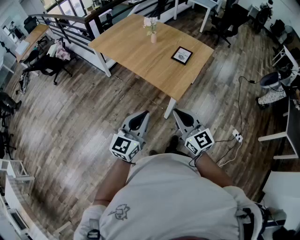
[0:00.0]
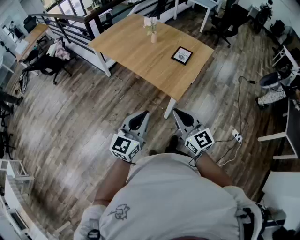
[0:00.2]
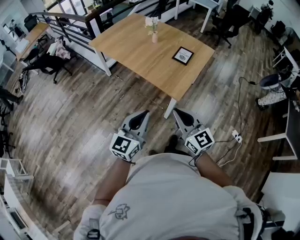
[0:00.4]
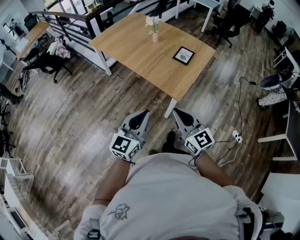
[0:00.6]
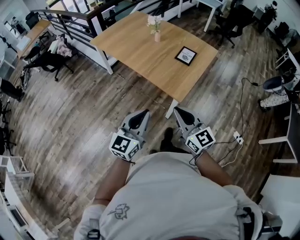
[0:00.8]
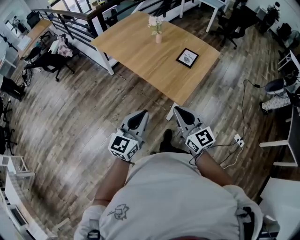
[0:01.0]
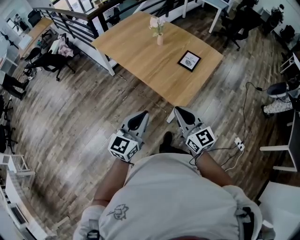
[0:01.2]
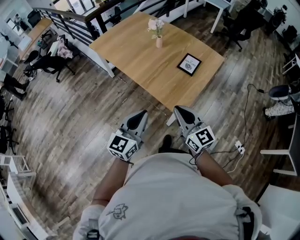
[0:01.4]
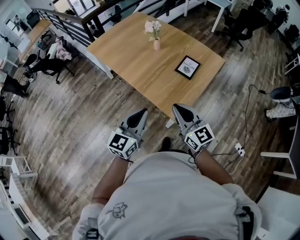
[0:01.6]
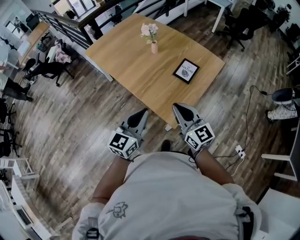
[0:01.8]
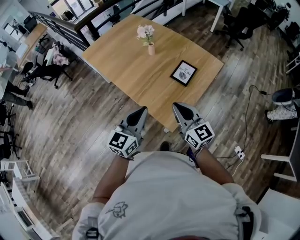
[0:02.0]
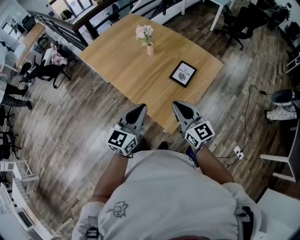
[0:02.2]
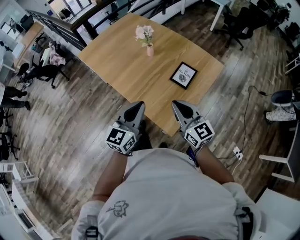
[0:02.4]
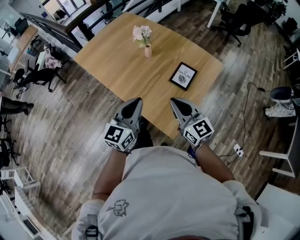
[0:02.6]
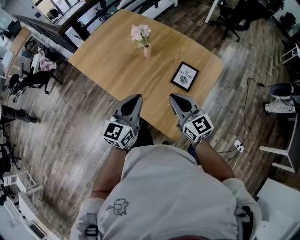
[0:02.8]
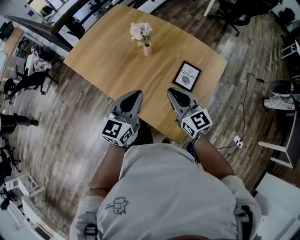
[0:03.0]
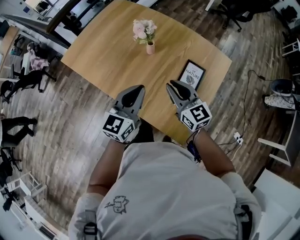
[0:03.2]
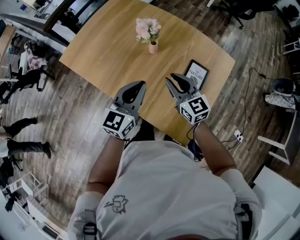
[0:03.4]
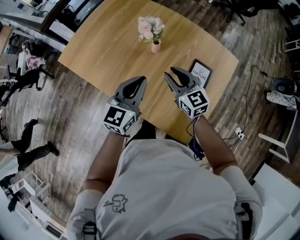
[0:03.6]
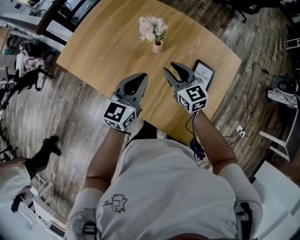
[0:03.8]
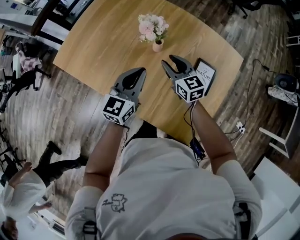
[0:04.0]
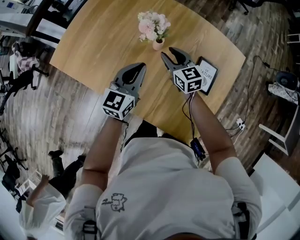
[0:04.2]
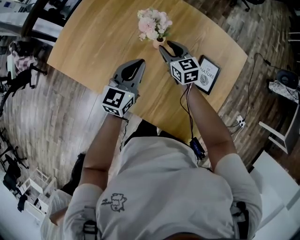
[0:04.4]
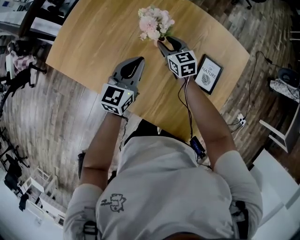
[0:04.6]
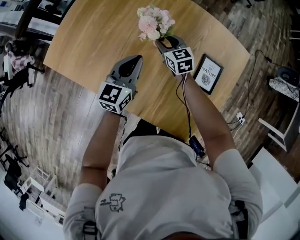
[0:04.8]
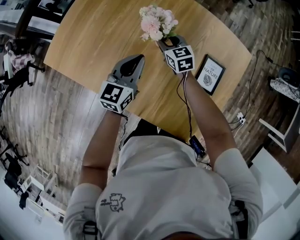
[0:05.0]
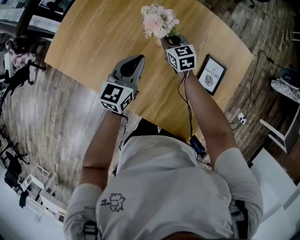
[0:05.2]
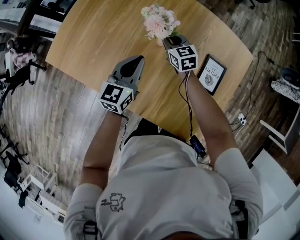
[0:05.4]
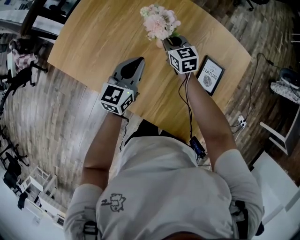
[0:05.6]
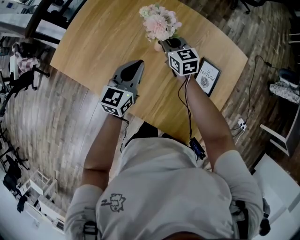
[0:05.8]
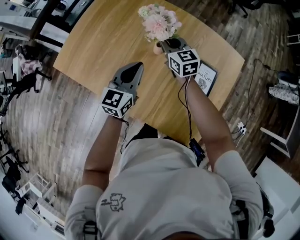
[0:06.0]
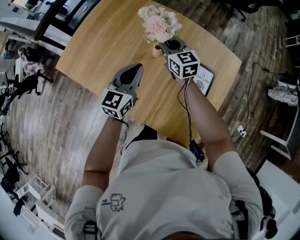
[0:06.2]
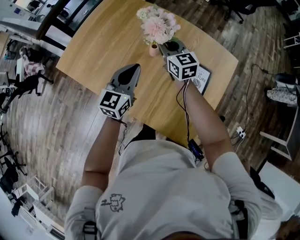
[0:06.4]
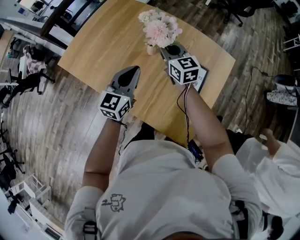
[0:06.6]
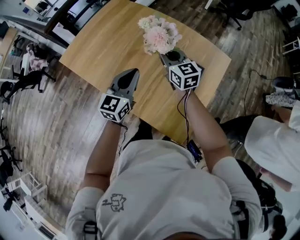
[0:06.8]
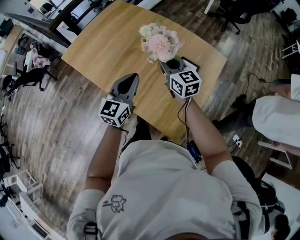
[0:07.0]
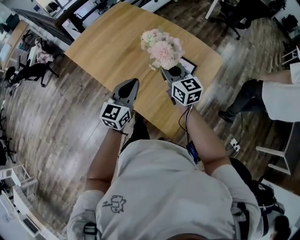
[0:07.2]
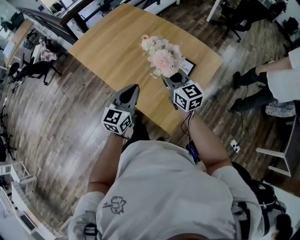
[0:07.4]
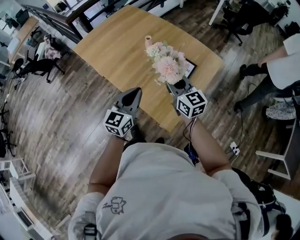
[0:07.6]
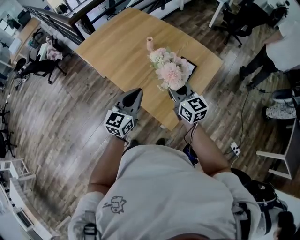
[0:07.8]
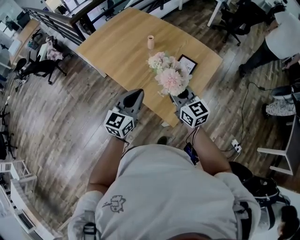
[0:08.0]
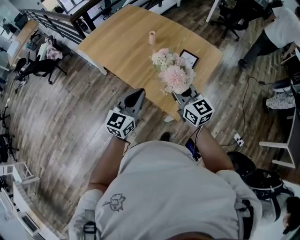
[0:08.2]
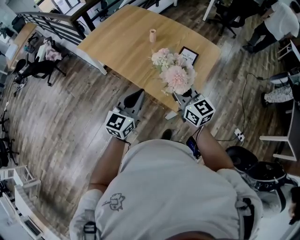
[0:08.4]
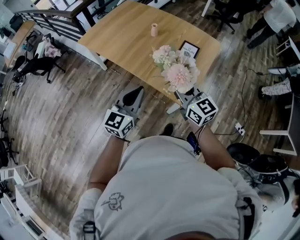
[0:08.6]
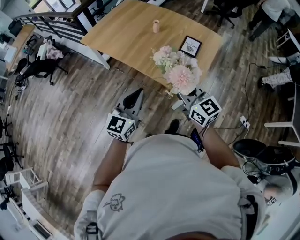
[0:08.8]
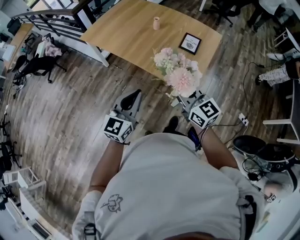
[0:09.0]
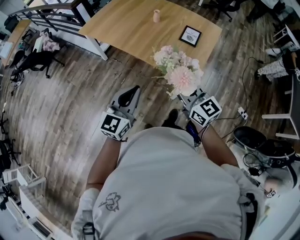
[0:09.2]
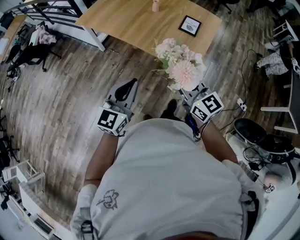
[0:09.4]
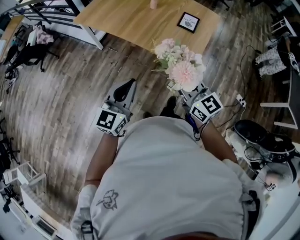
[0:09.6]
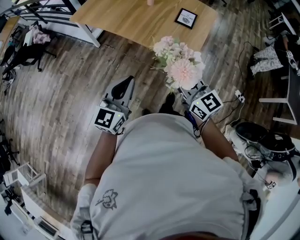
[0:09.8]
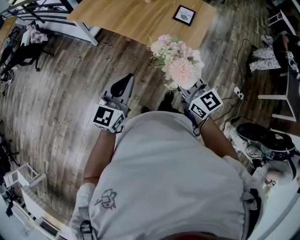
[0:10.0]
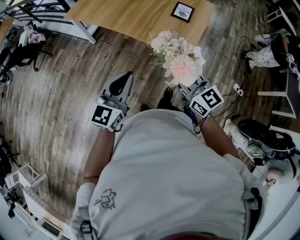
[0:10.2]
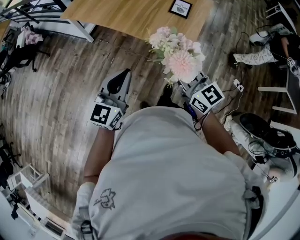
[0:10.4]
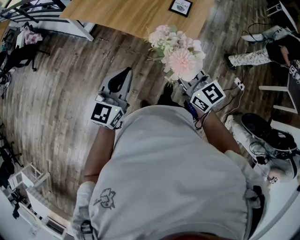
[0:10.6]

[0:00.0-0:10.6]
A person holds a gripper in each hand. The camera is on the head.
0:00.0 to 0:01.6: The two grippers go about 20 cm forward.
0:01.6 to 0:03.0: Both grippers move forward, about 25 cm.
0:03.0 to 0:04.6: Both grippers travel together forward and downward, some 35 cm. The right gripper swivels roughly 20 degrees, and opens.
0:04.6 to 0:06.0: The right gripper heads upward, covering roughly 10 cm, and closes.
0:06.0 to 0:07.6: The two grippers go about 35 cm backward.
0:07.6 to 0:09.0: The two grippers go some 25 cm backward and to the left.
0:09.0 to 0:10.6: The grippers both shift backward by roughly 5 cm.

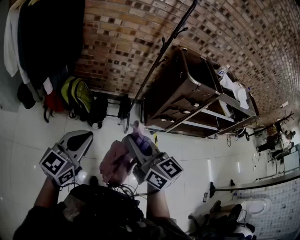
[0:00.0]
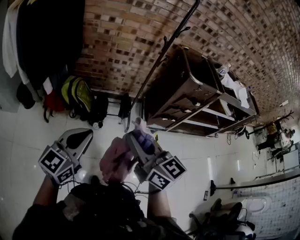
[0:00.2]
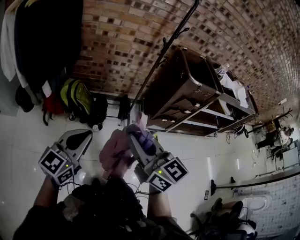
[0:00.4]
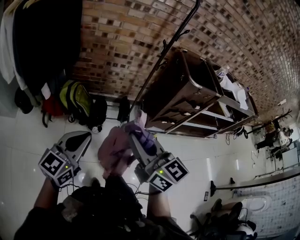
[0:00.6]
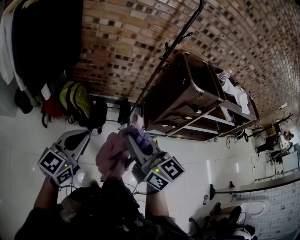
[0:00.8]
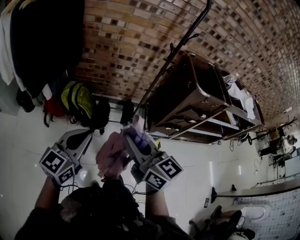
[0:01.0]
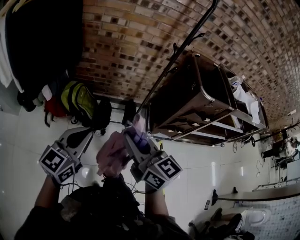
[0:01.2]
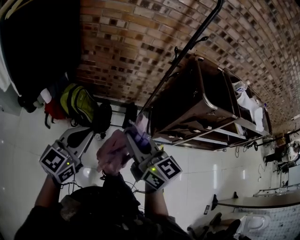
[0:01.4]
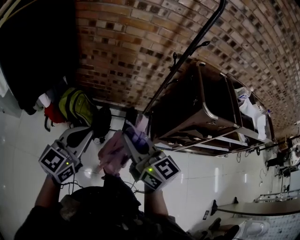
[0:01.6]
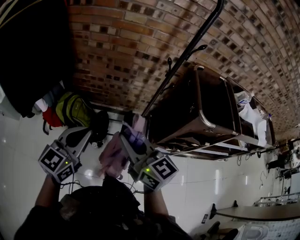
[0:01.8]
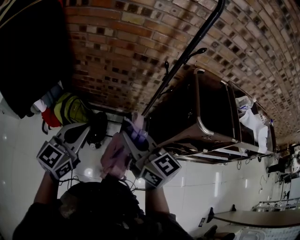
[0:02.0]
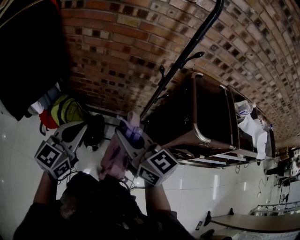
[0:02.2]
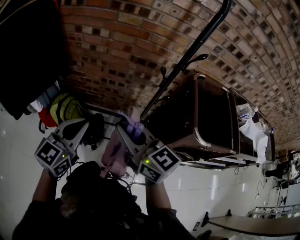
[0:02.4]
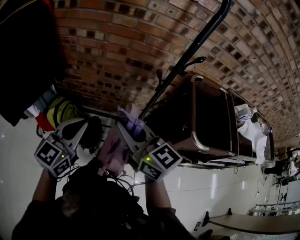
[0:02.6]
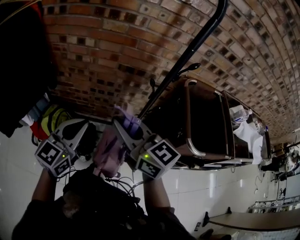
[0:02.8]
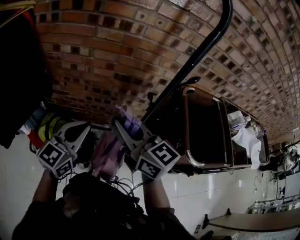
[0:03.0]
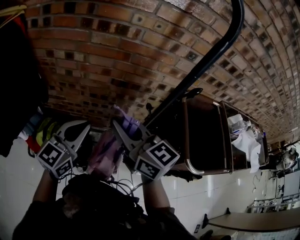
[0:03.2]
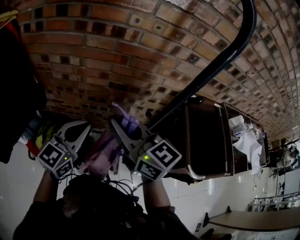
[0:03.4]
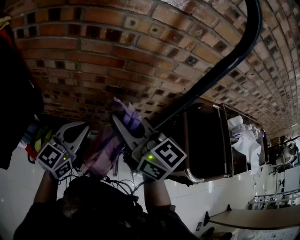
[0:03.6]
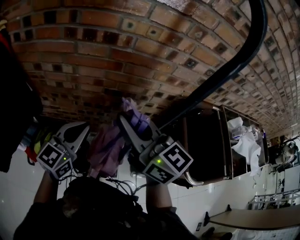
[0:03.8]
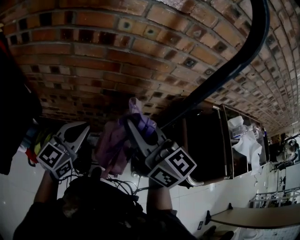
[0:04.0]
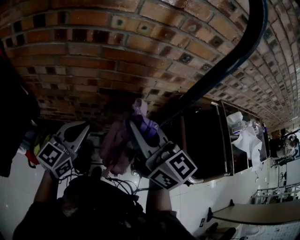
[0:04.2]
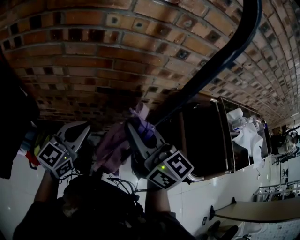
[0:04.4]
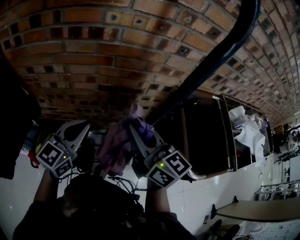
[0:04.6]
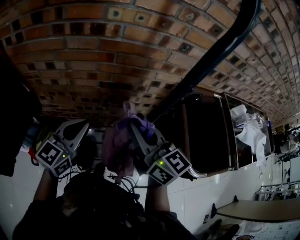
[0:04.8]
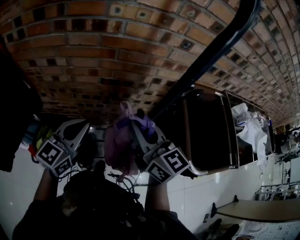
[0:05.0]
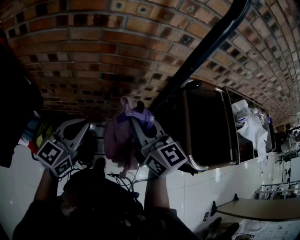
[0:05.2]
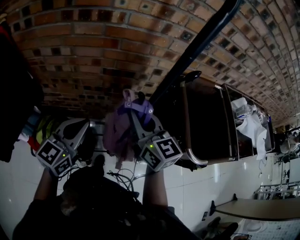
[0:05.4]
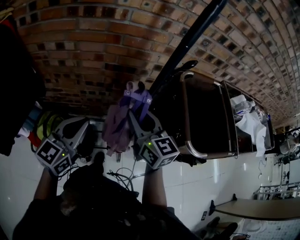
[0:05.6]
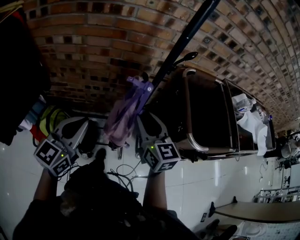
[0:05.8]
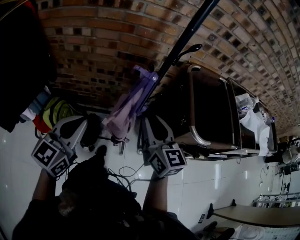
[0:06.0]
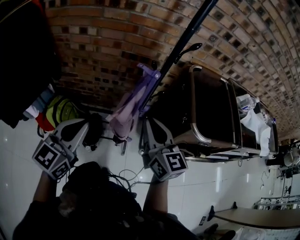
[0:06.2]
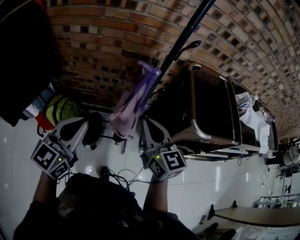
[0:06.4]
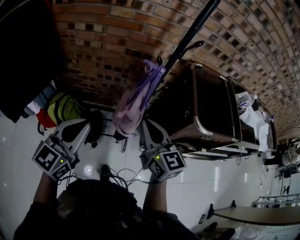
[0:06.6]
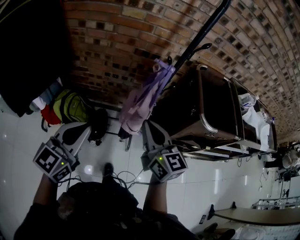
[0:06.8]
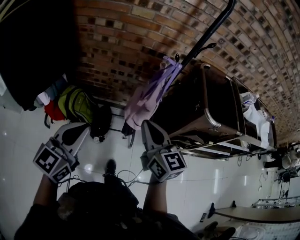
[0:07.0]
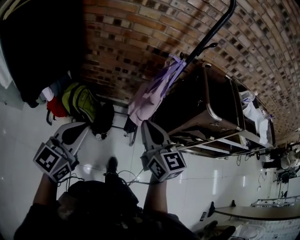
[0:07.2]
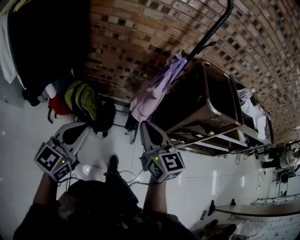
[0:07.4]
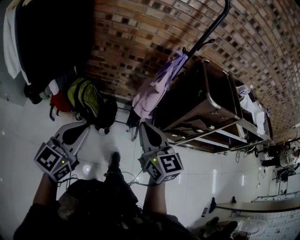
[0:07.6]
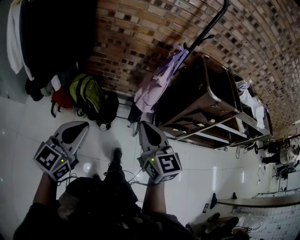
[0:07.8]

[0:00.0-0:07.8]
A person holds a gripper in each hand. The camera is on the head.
0:00.0 to 0:01.6: Both grippers travel together forward, about 30 cm.
0:01.6 to 0:03.2: The left gripper shifts roughly 35 cm forward and to the right. The right gripper is displaced forward by roughly 35 cm.
0:03.2 to 0:04.6: The right gripper shifts some 10 cm to the right and forward. Meanwhile the left gripper is displaced forward by about 10 cm.
0:04.6 to 0:06.2: Both grippers move backward, some 25 cm. The right gripper opens, then closes once more.
0:06.2 to 0:07.8: Both grippers are carried backward and to the left, approximately 40 cm.

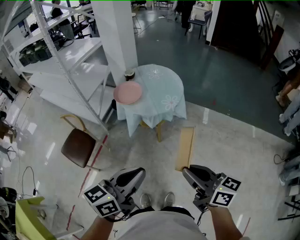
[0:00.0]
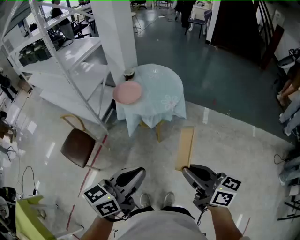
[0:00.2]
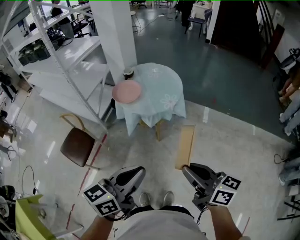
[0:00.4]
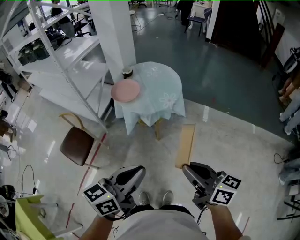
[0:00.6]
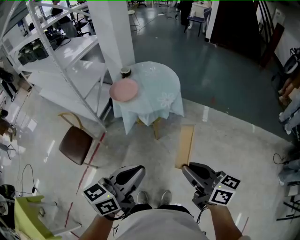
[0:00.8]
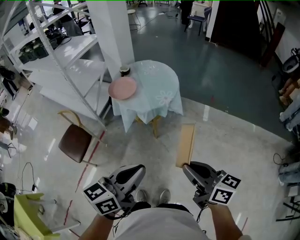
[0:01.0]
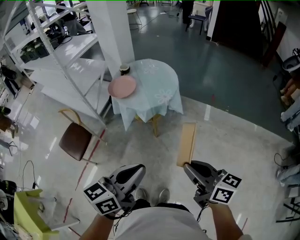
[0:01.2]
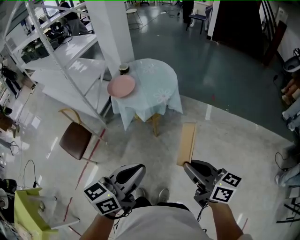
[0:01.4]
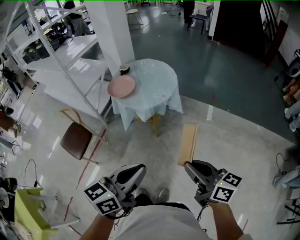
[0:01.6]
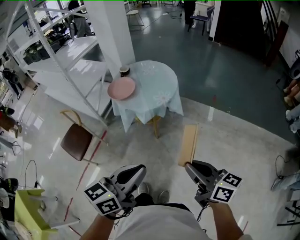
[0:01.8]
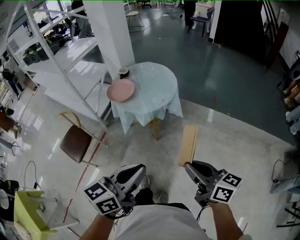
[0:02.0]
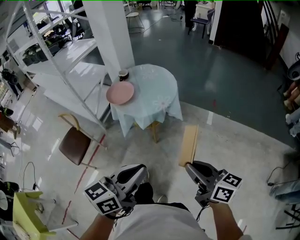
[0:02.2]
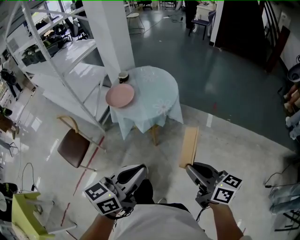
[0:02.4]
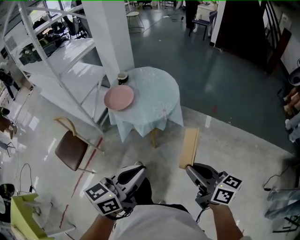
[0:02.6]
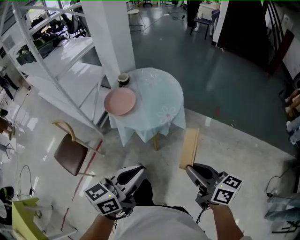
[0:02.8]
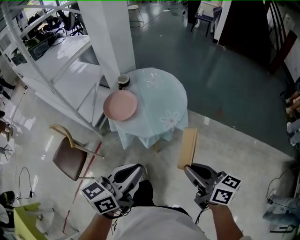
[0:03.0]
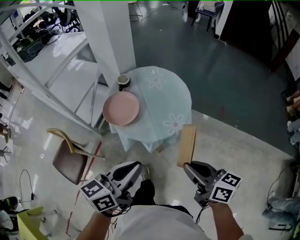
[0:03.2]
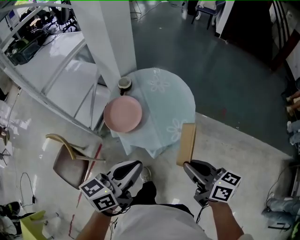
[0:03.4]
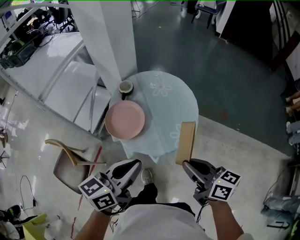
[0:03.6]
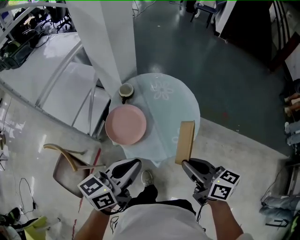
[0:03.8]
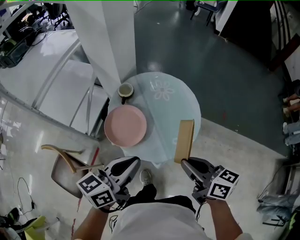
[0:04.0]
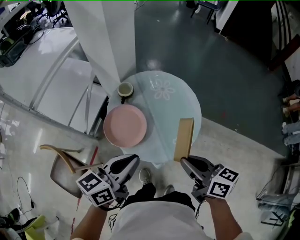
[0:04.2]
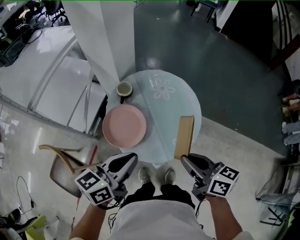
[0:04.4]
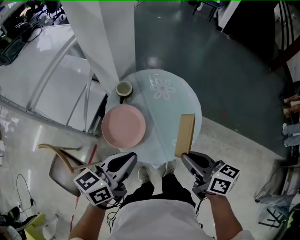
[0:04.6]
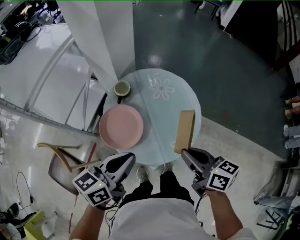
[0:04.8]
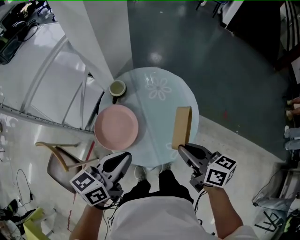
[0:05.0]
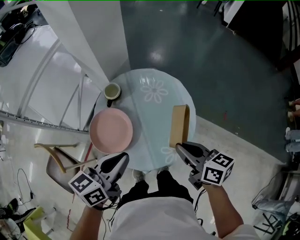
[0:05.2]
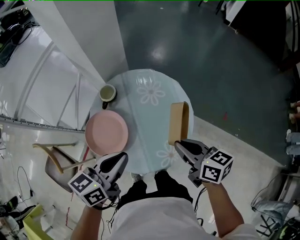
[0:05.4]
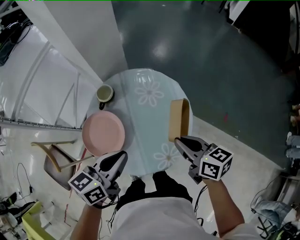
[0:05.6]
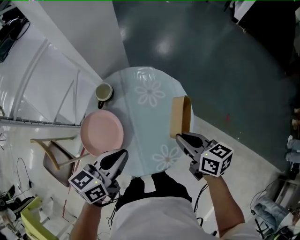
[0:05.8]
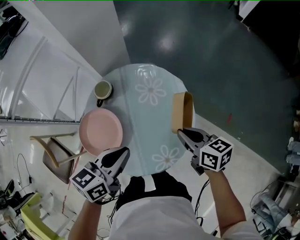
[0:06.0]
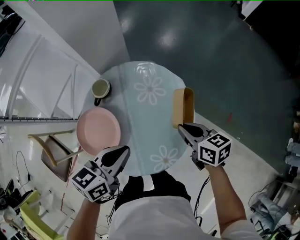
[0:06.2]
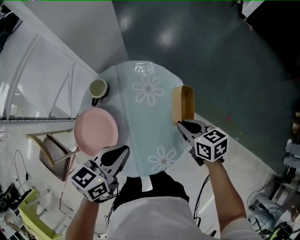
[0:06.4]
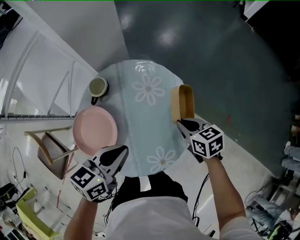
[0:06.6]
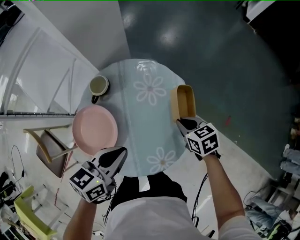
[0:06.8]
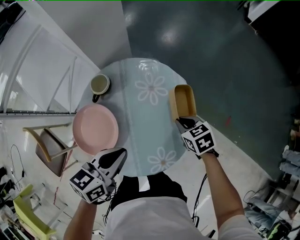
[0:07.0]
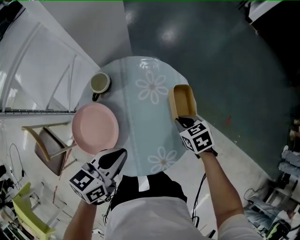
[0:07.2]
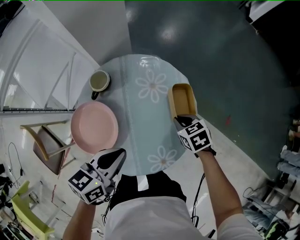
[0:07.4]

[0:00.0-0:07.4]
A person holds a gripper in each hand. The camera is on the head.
0:00.0 to 0:01.4: Both grippers move to the right, roughly 10 cm.
0:01.4 to 0:03.0: Both grippers travel together forward, roughly 25 cm.
0:03.0 to 0:04.4: Both grippers travel together forward and to the left, roughly 30 cm.
0:04.4 to 0:06.0: The grippers both shift forward, to the right and downward by roughly 25 cm.
0:06.0 to 0:07.4: The right gripper goes roughly 15 cm downward and forward, and changes its angle by roughly 40 degrees.
